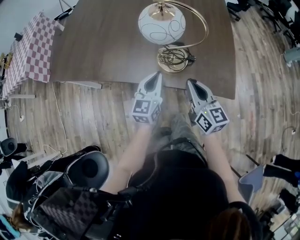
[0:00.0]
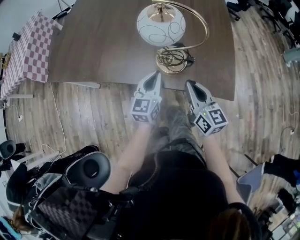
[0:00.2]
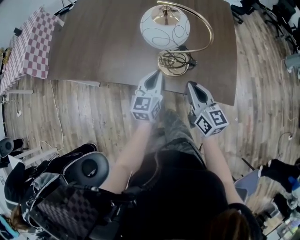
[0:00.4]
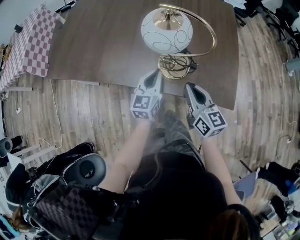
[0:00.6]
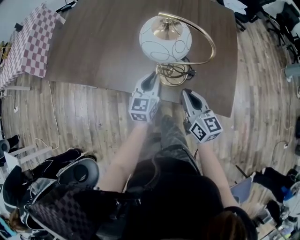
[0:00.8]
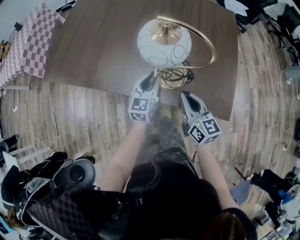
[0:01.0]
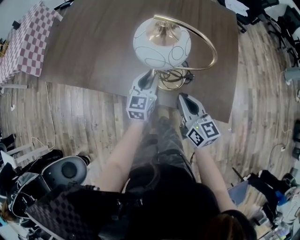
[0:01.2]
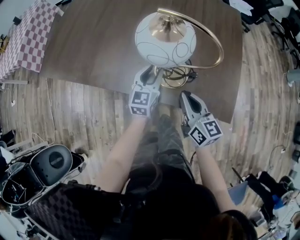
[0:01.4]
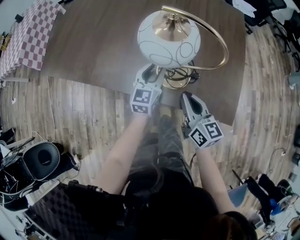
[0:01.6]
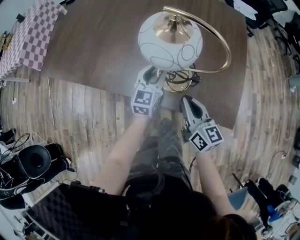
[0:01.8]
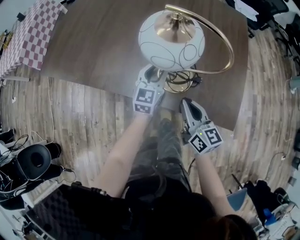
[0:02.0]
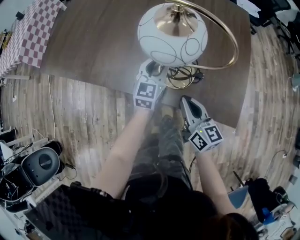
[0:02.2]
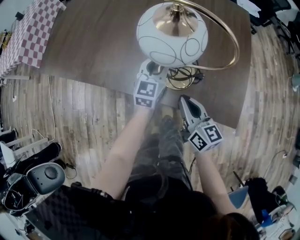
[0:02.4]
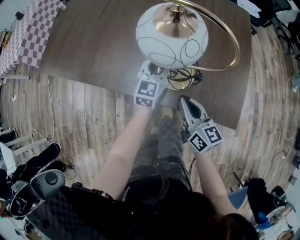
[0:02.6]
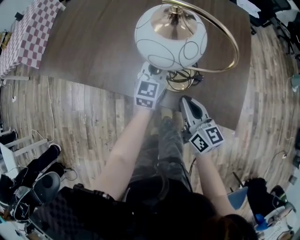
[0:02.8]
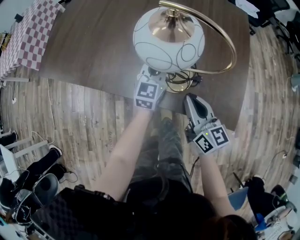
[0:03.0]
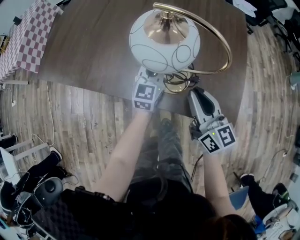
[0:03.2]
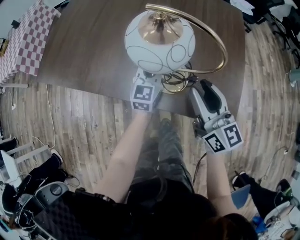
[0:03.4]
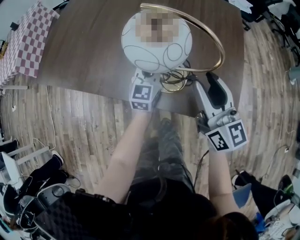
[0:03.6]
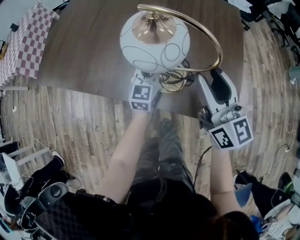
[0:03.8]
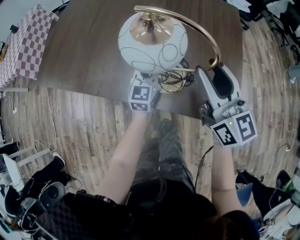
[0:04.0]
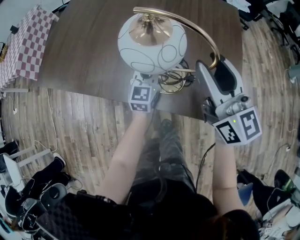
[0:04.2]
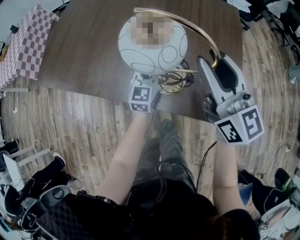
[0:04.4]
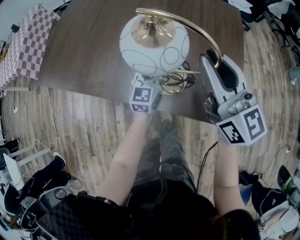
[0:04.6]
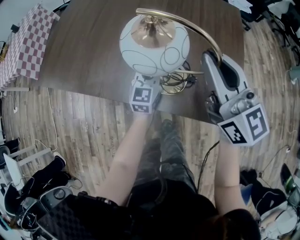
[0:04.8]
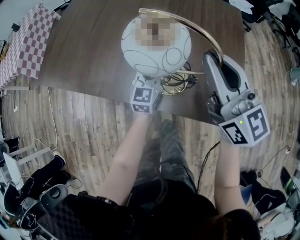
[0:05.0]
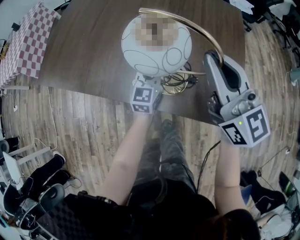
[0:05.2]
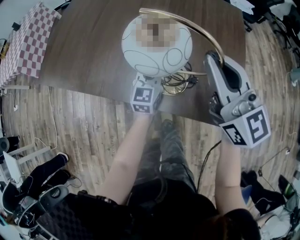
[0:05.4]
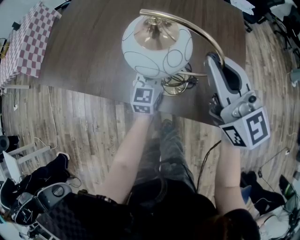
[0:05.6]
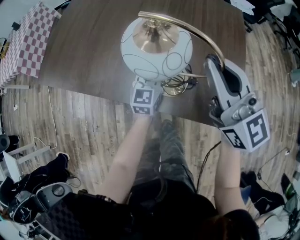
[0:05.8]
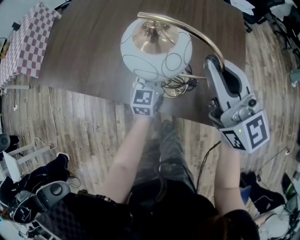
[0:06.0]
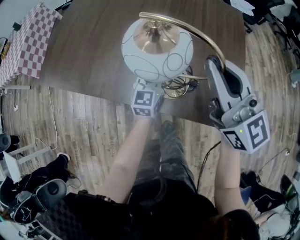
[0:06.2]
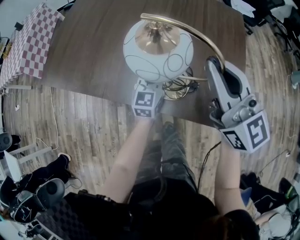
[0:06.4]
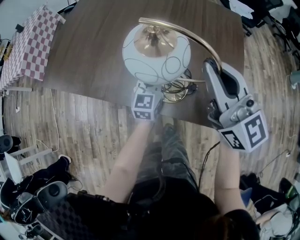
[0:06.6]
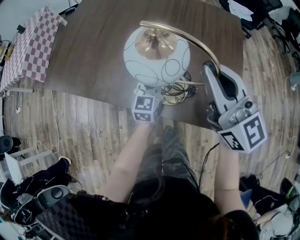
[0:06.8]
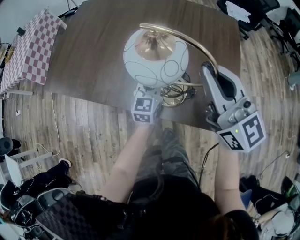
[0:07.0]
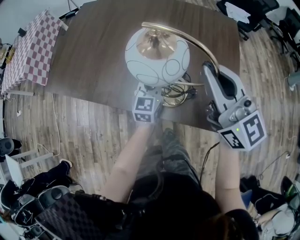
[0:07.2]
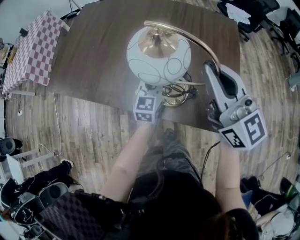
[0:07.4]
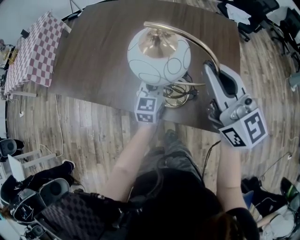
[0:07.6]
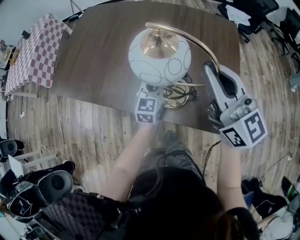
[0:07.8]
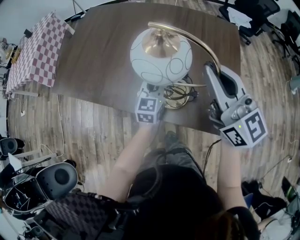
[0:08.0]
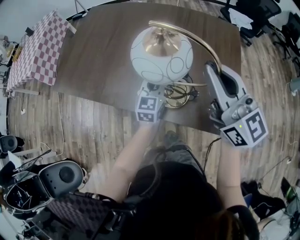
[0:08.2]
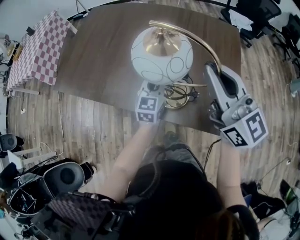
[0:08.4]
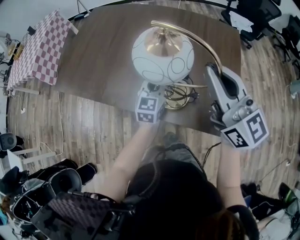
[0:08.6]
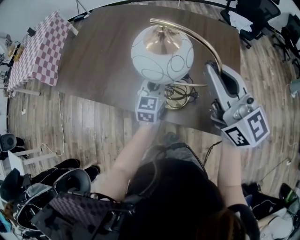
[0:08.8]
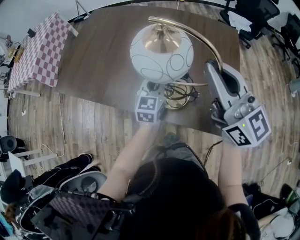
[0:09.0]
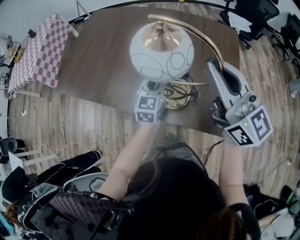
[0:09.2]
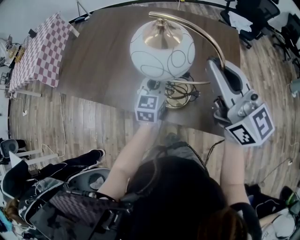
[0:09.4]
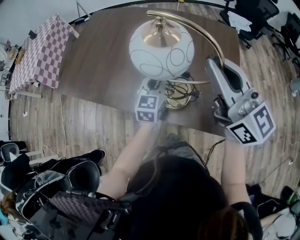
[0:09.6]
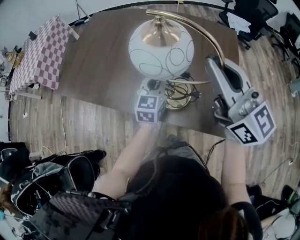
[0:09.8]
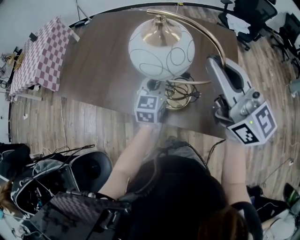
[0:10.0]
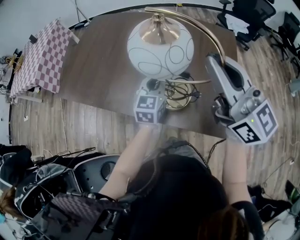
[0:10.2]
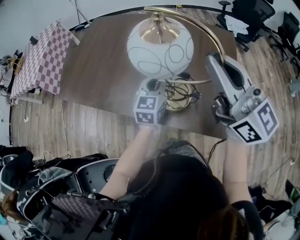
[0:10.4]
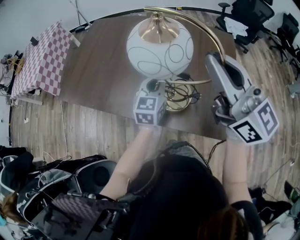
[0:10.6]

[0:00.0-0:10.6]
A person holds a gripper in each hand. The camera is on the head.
0:00.0 to 0:01.6: The left gripper goes some 15 cm forward and downward, and opens its fingers, while the right gripper heads forward, covering about 5 cm.
0:01.6 to 0:03.0: The left gripper closes.
0:03.0 to 0:04.6: The right gripper shifts about 20 cm upward and forward, changes its angle by approximately 20 degrees, and opens, then closes once more.
0:04.6 to 0:06.0: The right gripper closes up.
0:06.0 to 0:07.6: There are only small adjustments of the grippers.
0:07.6 to 0:09.0: The grippers stay close to where they were, moving slightly.
0:09.0 to 0:10.6: The grippers both shift upward by approximately 5 cm.

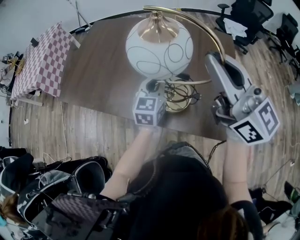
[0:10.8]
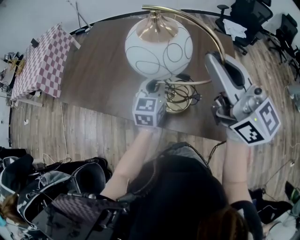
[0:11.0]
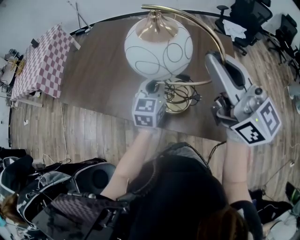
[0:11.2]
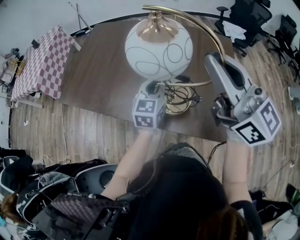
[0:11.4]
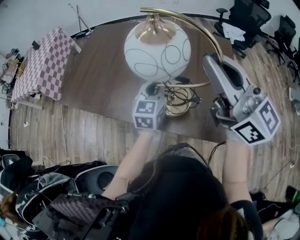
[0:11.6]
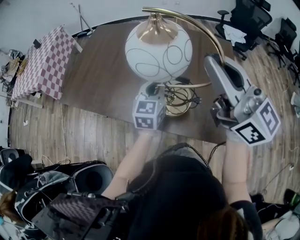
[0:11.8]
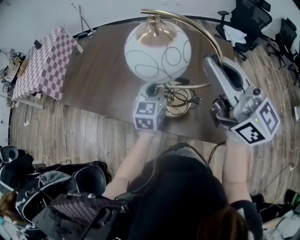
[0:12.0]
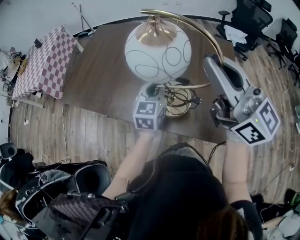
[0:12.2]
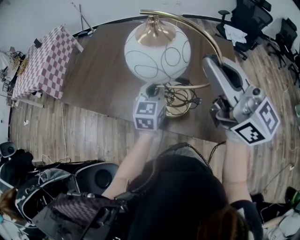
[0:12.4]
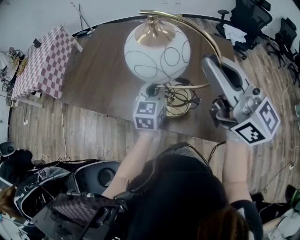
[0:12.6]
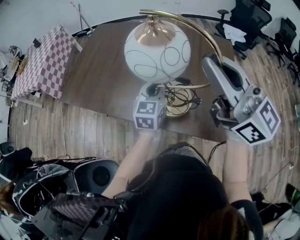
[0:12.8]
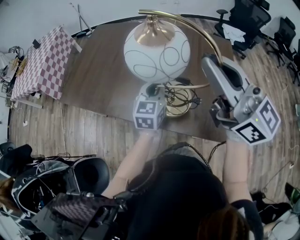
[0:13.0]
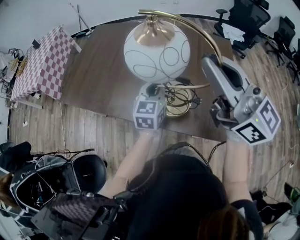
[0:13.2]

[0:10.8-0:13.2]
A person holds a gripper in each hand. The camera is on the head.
0:10.8 to 0:12.0: The grippers make only small movements.
0:12.0 to 0:13.2: Both grippers stay put.

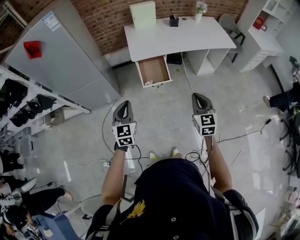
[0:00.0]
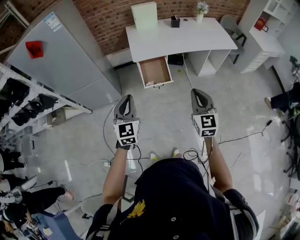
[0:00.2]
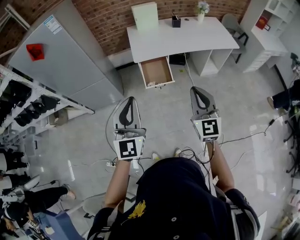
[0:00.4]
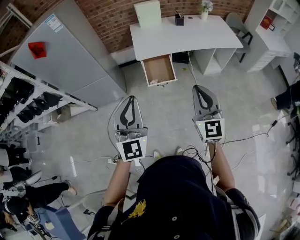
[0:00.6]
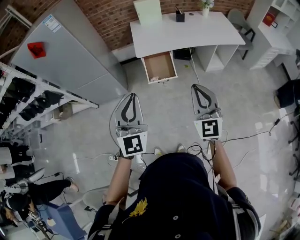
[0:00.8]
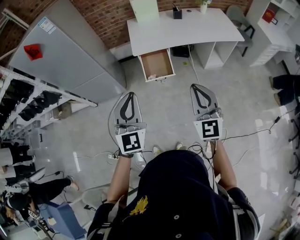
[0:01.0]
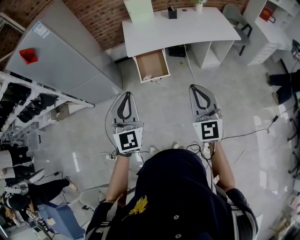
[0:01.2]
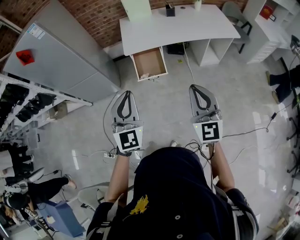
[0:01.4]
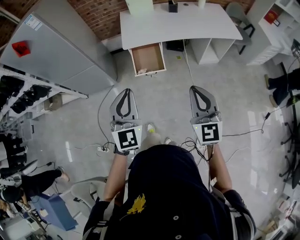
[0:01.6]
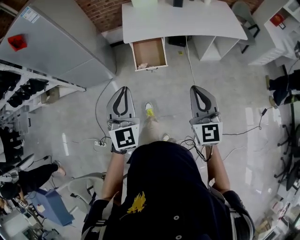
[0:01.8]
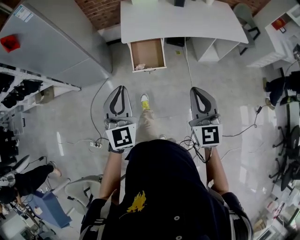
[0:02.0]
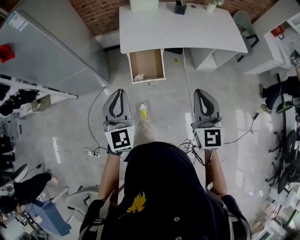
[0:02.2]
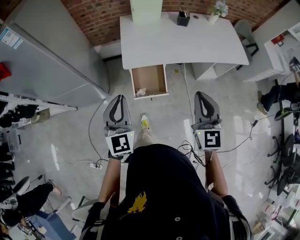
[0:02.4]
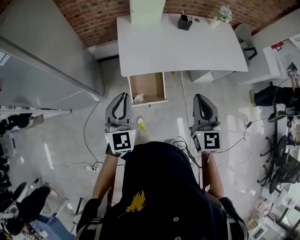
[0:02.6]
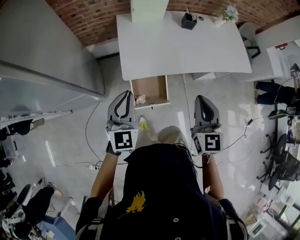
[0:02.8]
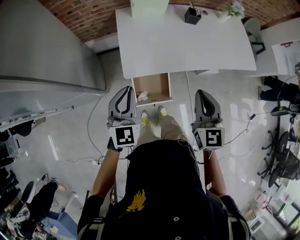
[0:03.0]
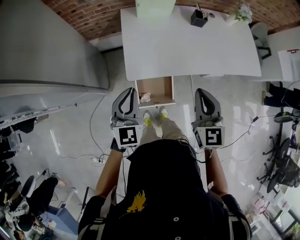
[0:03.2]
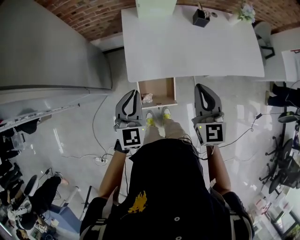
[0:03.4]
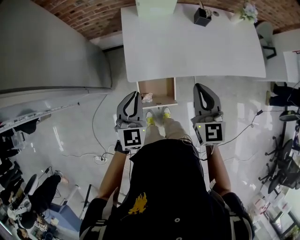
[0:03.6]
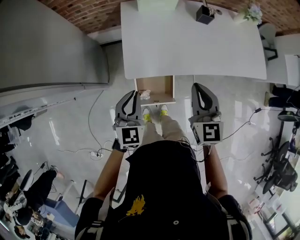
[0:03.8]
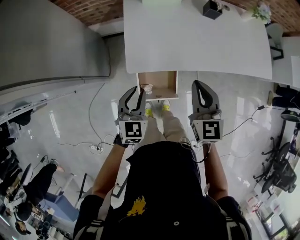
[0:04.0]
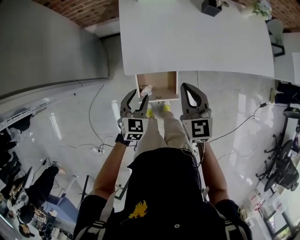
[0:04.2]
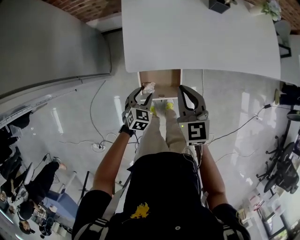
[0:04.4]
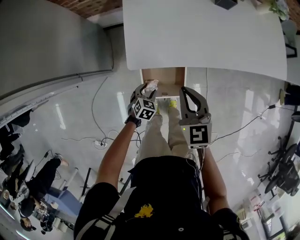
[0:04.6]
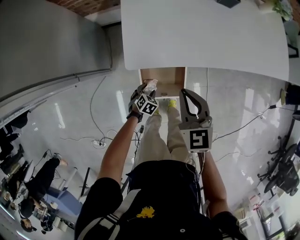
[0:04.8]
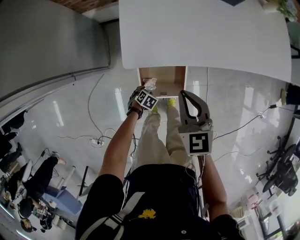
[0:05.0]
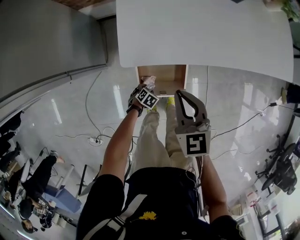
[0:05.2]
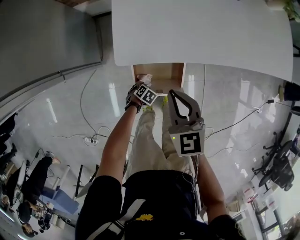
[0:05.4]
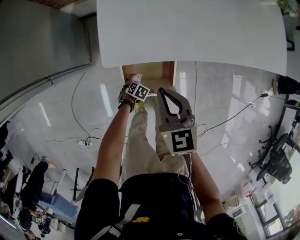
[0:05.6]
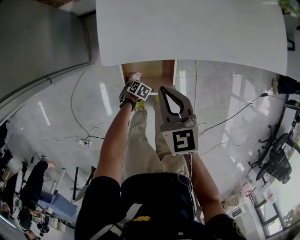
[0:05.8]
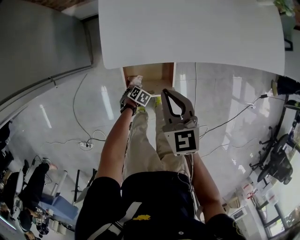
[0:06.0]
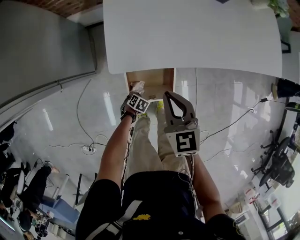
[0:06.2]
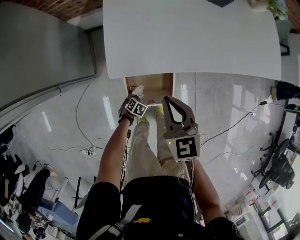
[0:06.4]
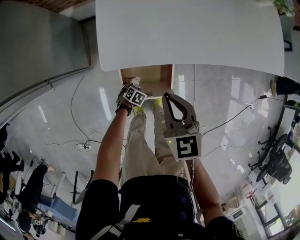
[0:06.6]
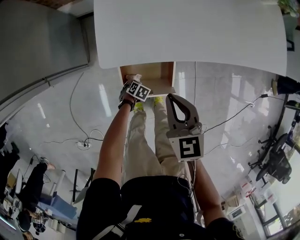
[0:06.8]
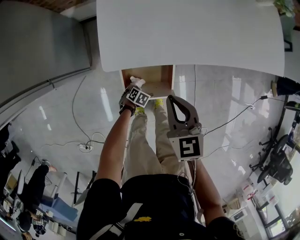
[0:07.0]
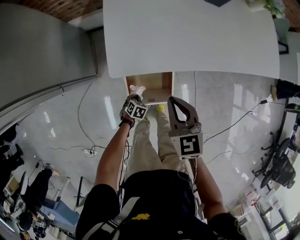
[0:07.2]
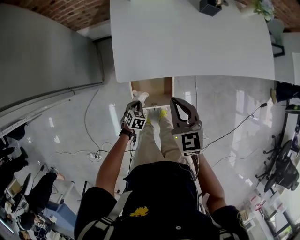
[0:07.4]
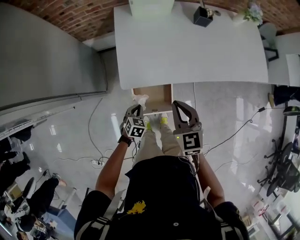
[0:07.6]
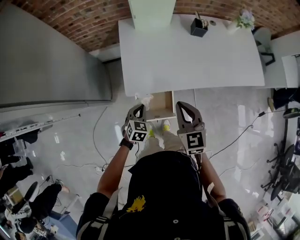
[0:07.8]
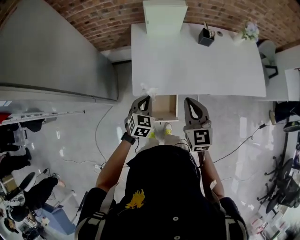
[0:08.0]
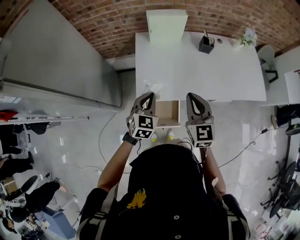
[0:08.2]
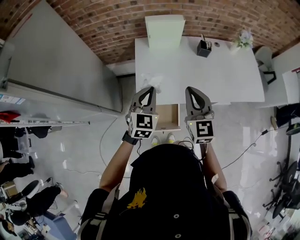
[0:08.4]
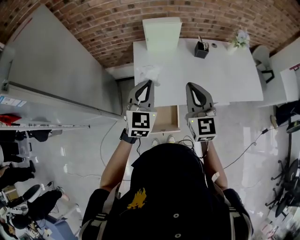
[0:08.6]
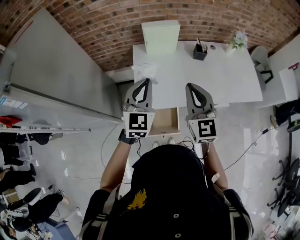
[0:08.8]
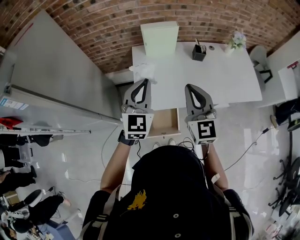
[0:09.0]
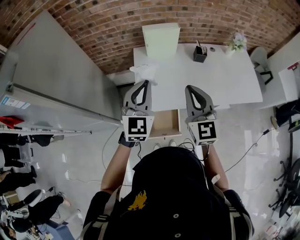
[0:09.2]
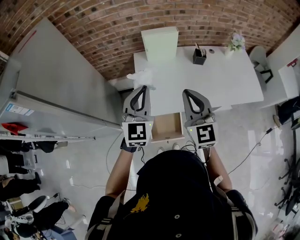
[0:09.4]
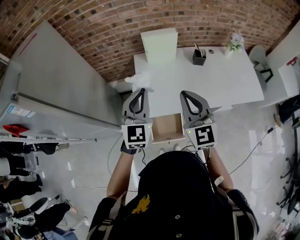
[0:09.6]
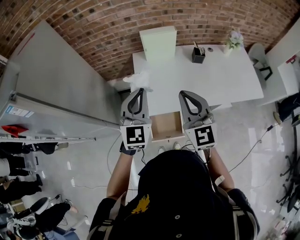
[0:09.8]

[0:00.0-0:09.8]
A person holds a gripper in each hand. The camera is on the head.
0:00.0 to 0:01.4: The right gripper moves upward and to the right, some 15 cm, and changes its angle by approximately 20 degrees. Meanwhile the left gripper goes approximately 20 cm to the right and upward.
0:01.4 to 0:02.8: The two grippers travel together, forward, roughly 40 cm.
0:02.8 to 0:04.2: The left gripper moves downward, some 25 cm, points its fingers some 30 degrees further downward, and opens; the right gripper goes roughly 20 cm downward and forward.
0:04.2 to 0:05.6: The right gripper travels downward by about 15 cm, while the left gripper heads downward, covering approximately 40 cm, and points its fingers about 40 degrees further downward.
0:05.6 to 0:07.0: The left gripper closes up.
0:07.0 to 0:08.4: The right gripper moves upward, approximately 30 cm, and turns by about 30 degrees; the left gripper moves upward, roughly 70 cm, and tips its fingers upward by some 60 degrees.
0:08.4 to 0:09.8: The left gripper goes approximately 15 cm upward. Meanwhile the right gripper shifts roughly 10 cm upward.

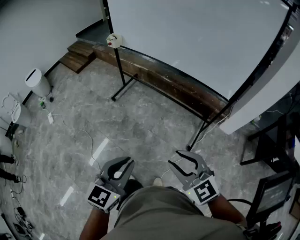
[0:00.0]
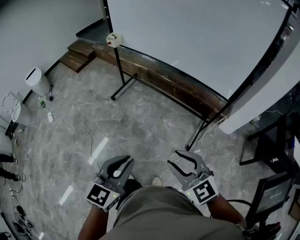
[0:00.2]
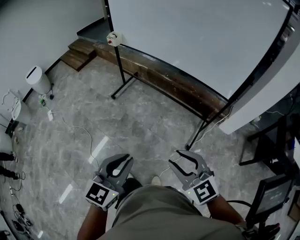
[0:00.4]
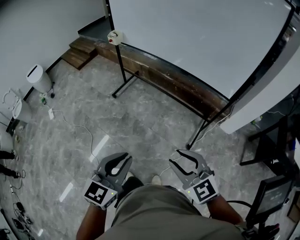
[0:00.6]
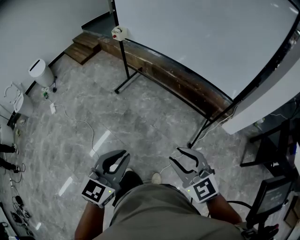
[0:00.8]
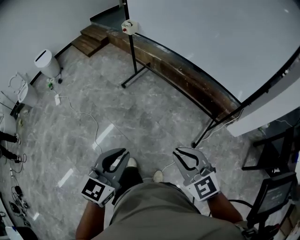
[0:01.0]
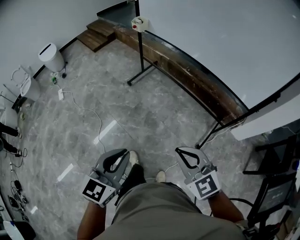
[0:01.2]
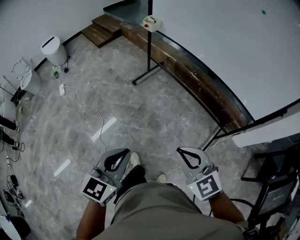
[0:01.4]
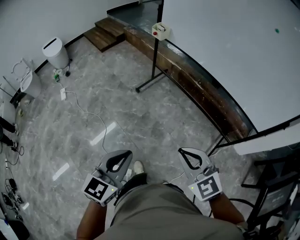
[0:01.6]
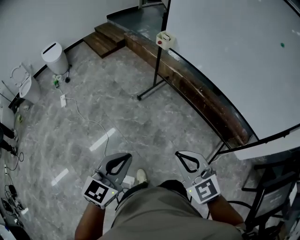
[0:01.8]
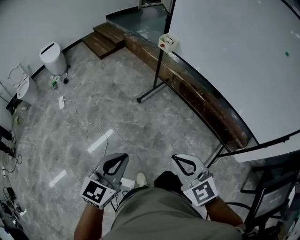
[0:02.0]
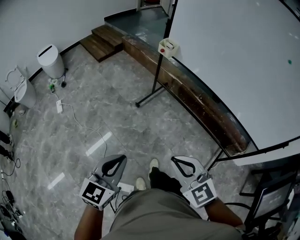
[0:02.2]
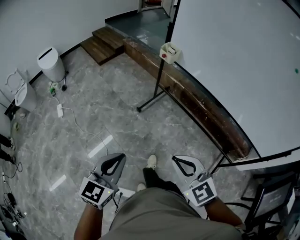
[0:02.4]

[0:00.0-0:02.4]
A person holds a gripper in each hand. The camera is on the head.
0:00.0 to 0:01.2: The left gripper is displaced to the left by some 5 cm. The right gripper shifts about 10 cm to the left and forward, and closes its fingers.
0:01.2 to 0:02.4: Both grippers travel together forward and to the left, roughly 35 cm.
